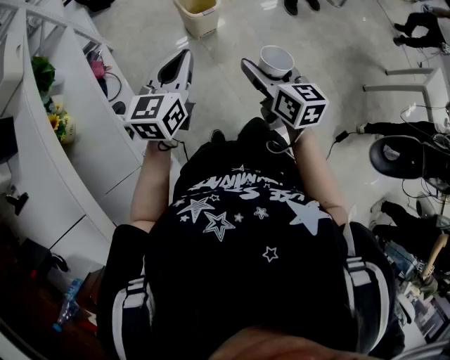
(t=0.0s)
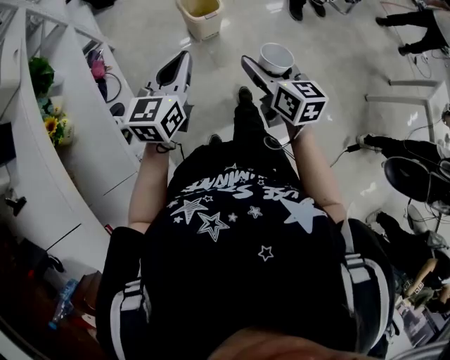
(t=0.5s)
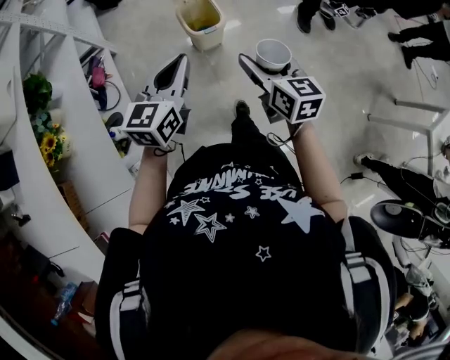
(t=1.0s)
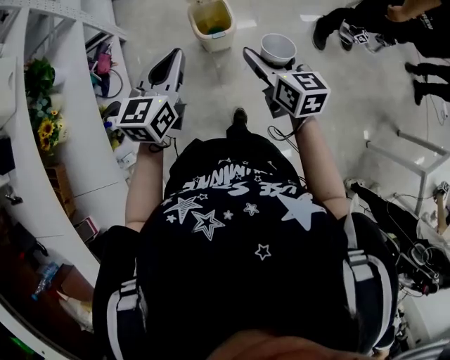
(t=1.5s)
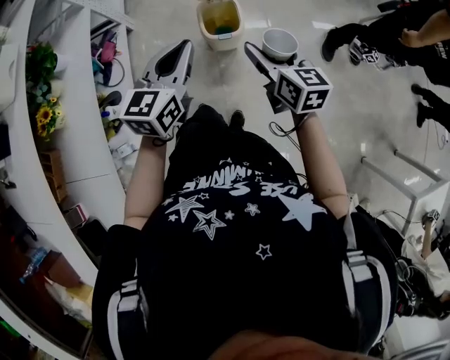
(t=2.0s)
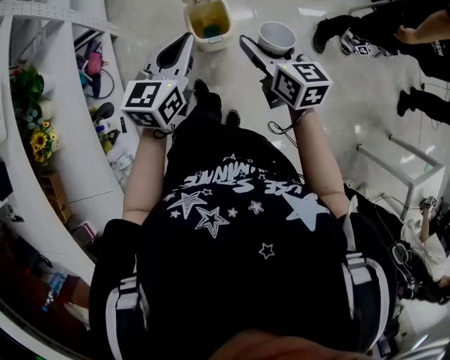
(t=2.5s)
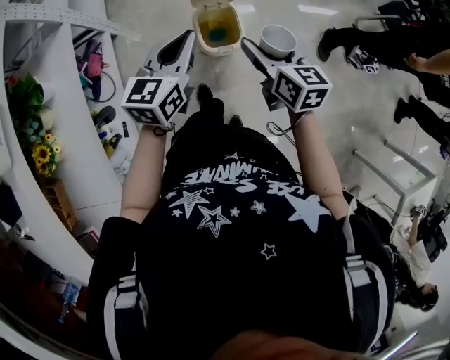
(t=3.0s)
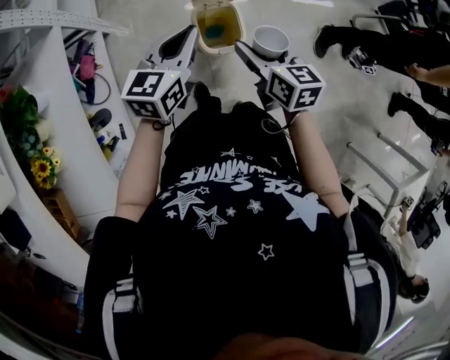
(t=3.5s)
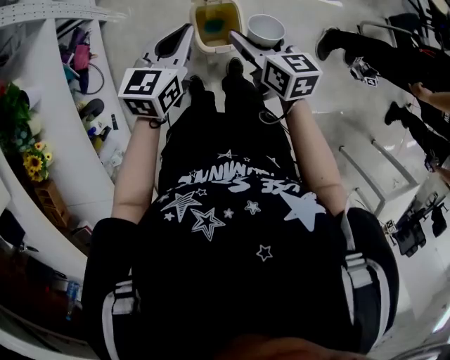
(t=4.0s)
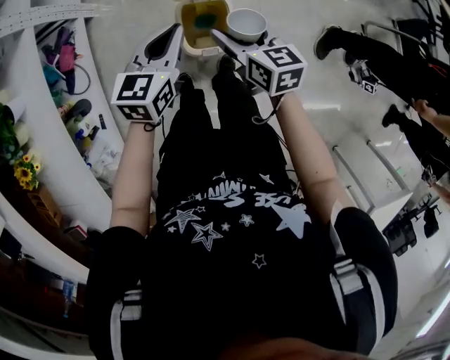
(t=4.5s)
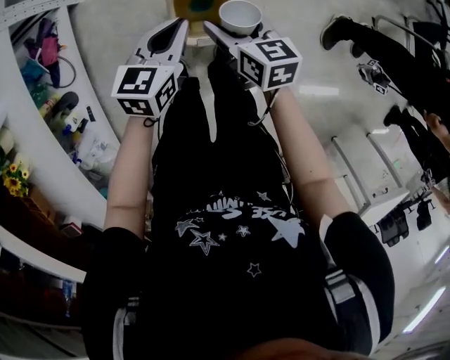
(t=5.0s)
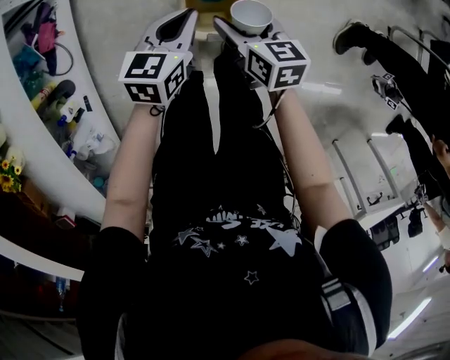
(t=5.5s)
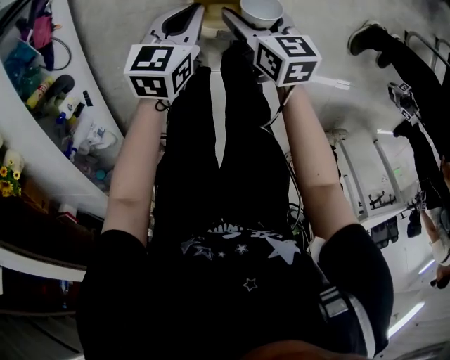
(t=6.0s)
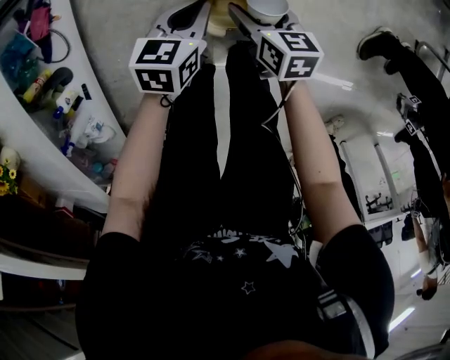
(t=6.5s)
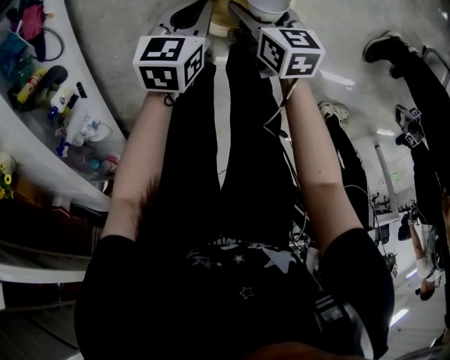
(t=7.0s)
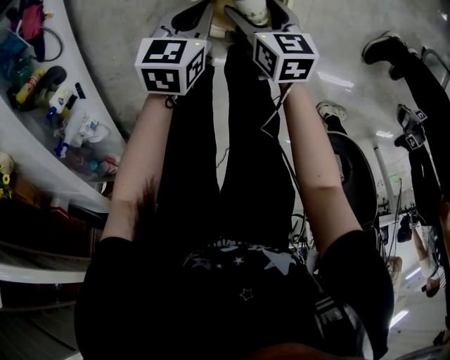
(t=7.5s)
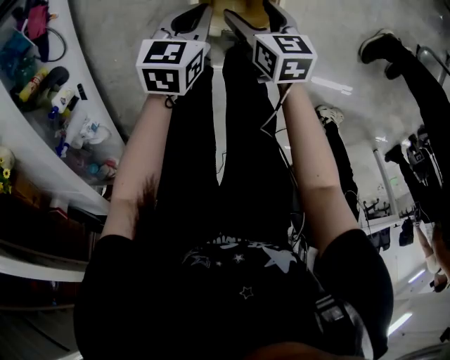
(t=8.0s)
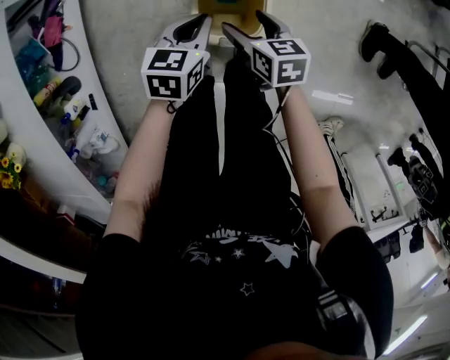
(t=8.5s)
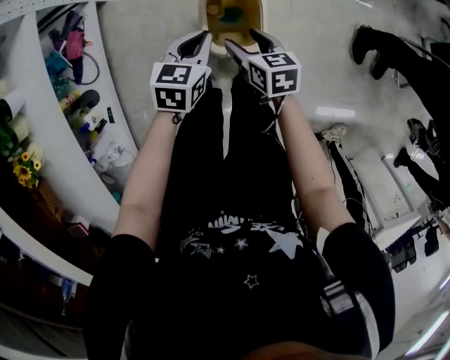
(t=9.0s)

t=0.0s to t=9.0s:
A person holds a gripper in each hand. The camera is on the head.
t=0.0s to t=2.0s: The left gripper goes about 25 cm forward and to the right, while the right gripper goes approximately 30 cm forward, and changes its angle by some 20 degrees.
t=2.0s to t=4.5s: The grippers both shift forward and downward by about 30 cm.
t=4.5s to t=7.0s: The grippers both shift downward by approximately 30 cm. The left gripper swivels some 20 degrees.
t=7.0s to t=9.0s: The grippers both shift upward by roughly 15 cm.

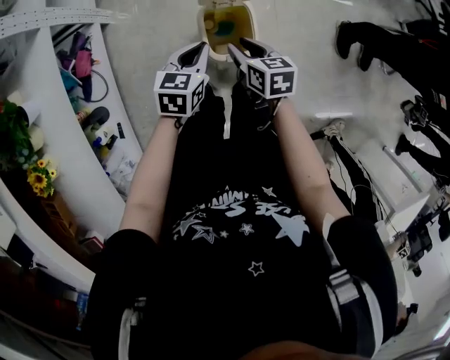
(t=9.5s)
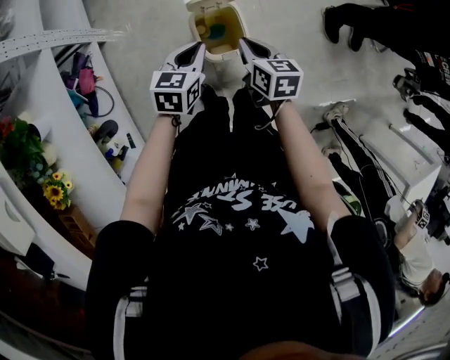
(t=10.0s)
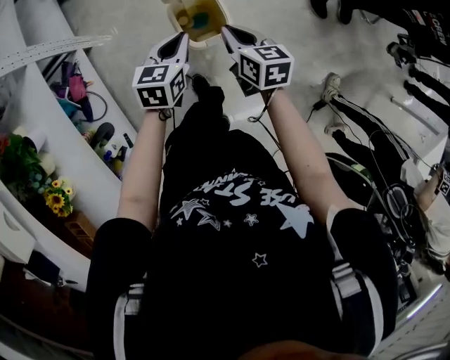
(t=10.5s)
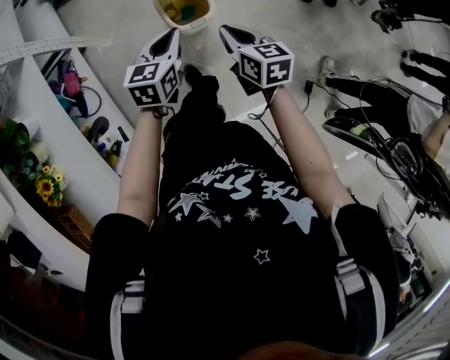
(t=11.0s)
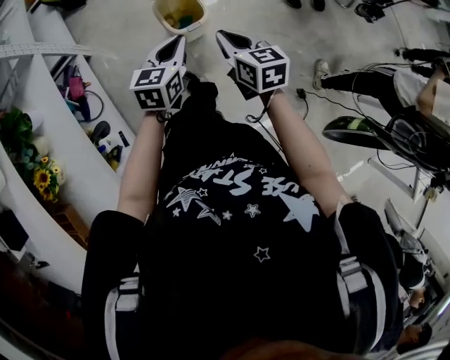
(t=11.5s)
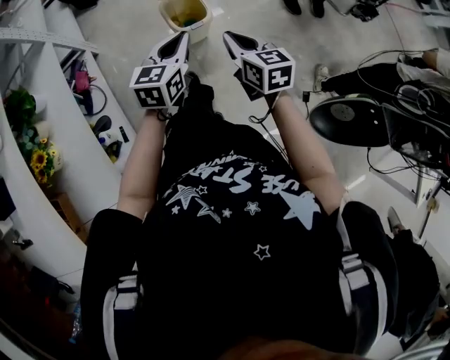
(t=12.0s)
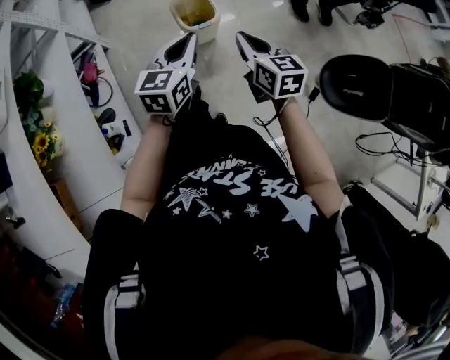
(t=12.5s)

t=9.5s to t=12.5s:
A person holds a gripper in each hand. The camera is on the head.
t=9.5s to t=11.0s: Both grippers move backward and upward, some 15 cm. The right gripper closes.
t=11.0s to t=12.5s: The two grippers go some 20 cm backward and upward.

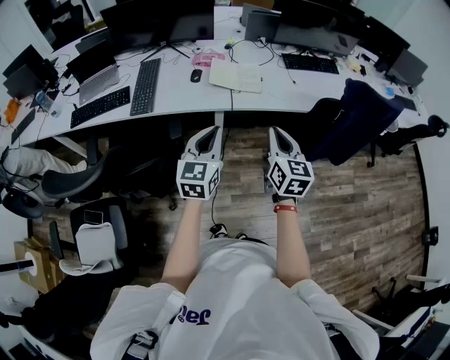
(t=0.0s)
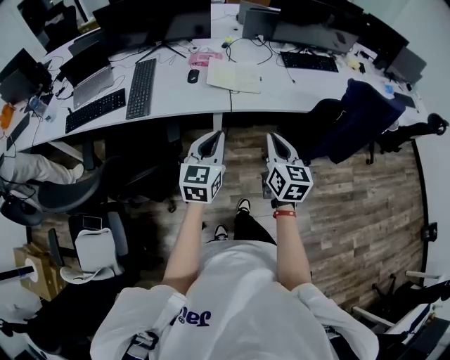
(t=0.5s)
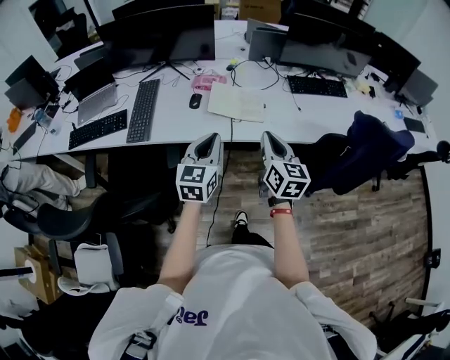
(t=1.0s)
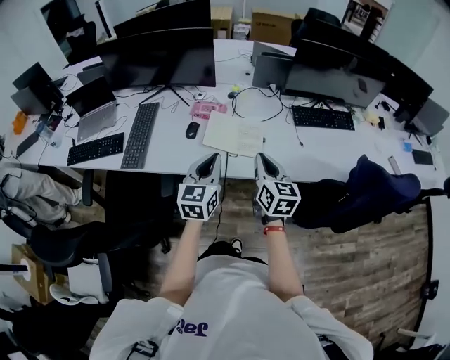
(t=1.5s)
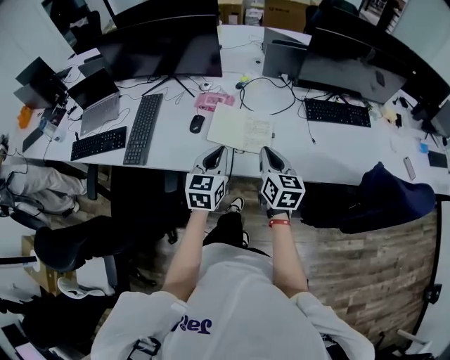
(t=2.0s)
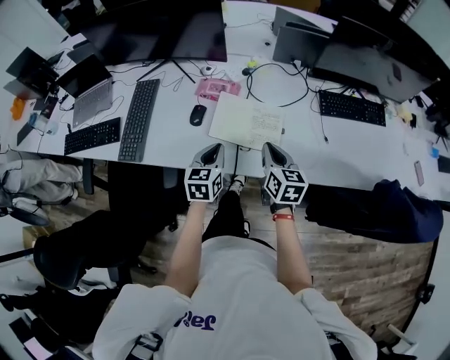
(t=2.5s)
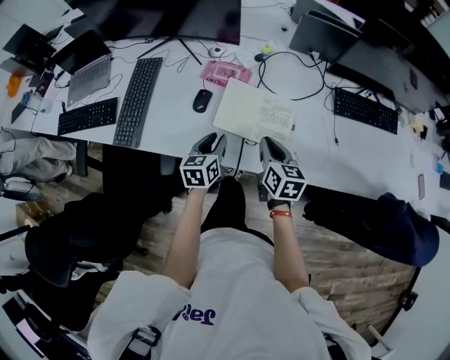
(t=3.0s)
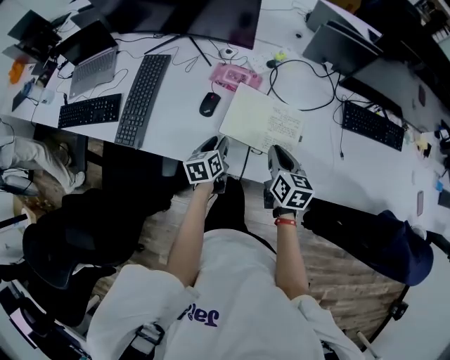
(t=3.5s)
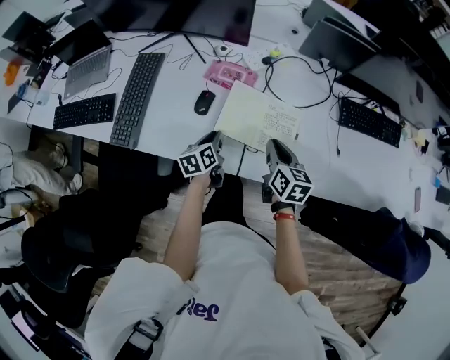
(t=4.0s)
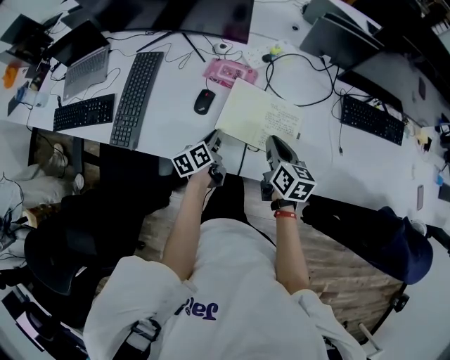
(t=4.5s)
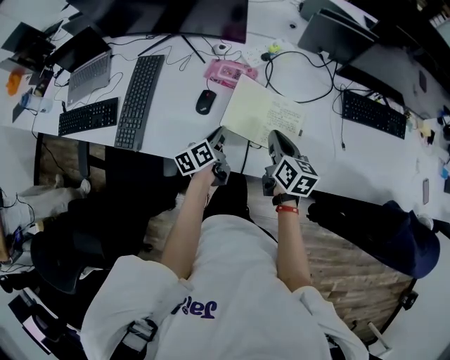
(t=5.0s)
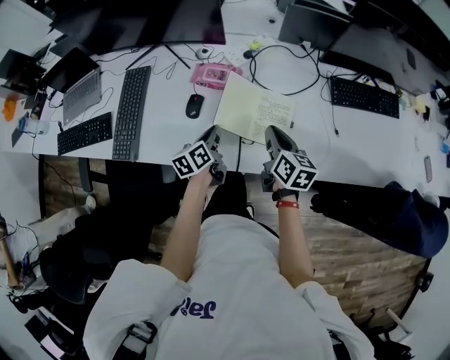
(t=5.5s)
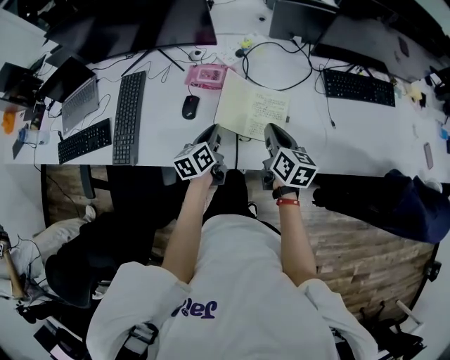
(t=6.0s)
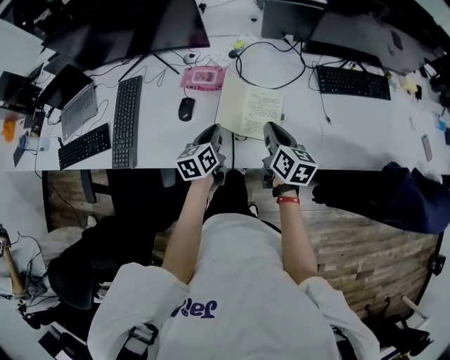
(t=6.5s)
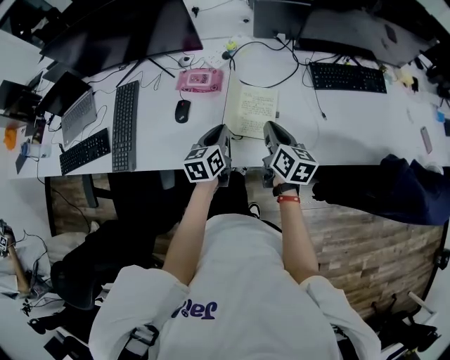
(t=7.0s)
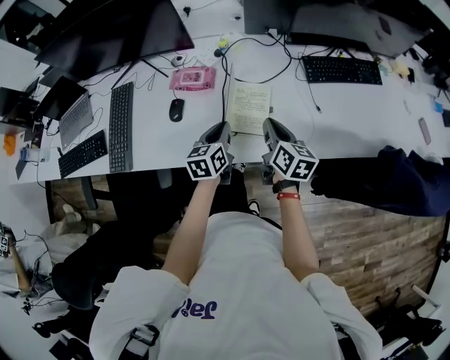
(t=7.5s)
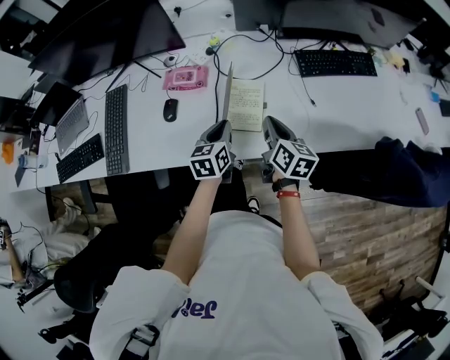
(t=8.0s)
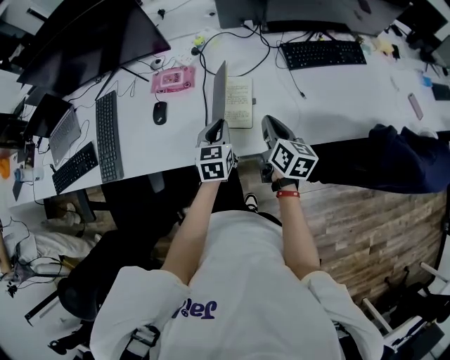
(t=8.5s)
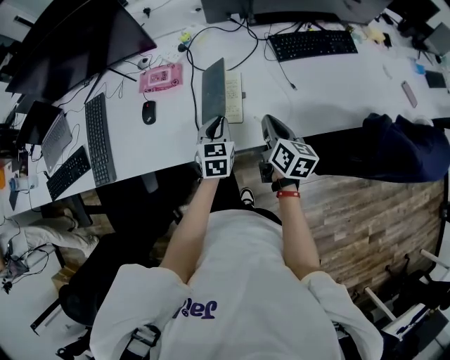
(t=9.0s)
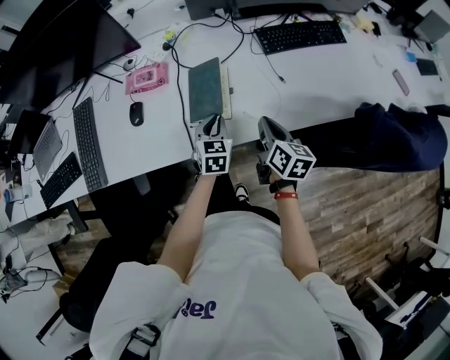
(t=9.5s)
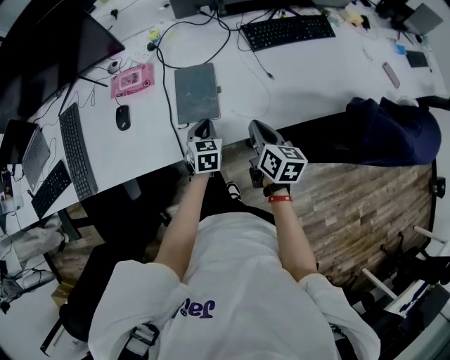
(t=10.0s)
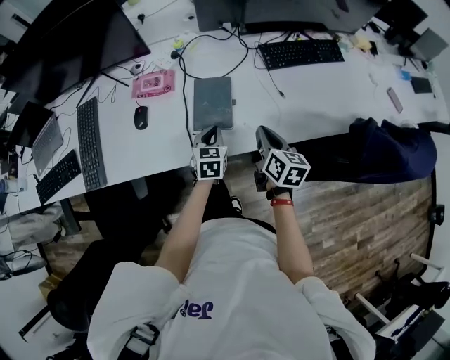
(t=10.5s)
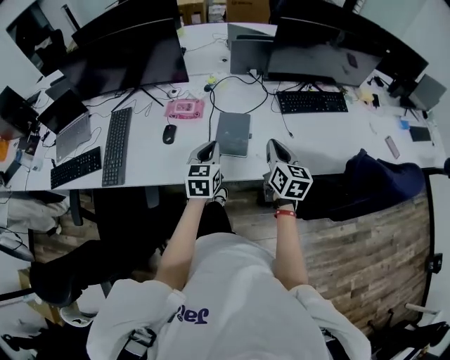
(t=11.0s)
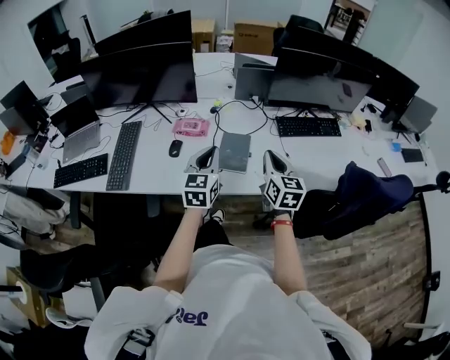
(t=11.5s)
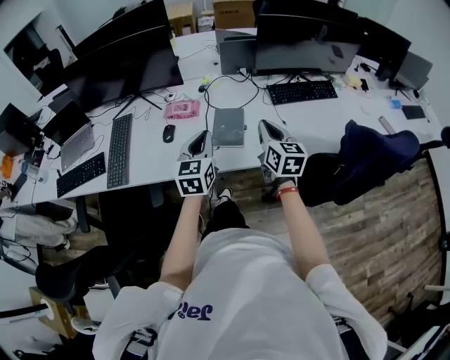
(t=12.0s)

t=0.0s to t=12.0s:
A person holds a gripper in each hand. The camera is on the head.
t=0.0s to t=2.0s: The two grippers go approximately 35 cm forward.
t=2.0s to t=4.0s: The left gripper travels downward and forward by about 30 cm, and turns by some 40 degrees, while the right gripper is displaced forward and downward by roughly 20 cm.
t=4.0s to t=6.0s: The left gripper shifts about 10 cm upward and to the right.
t=6.0s to t=8.0s: Both grippers travel together to the right, approximately 10 cm. The left gripper changes its angle by some 20 degrees.
t=8.0s to t=10.0s: The right gripper moves to the right and backward, some 10 cm; the left gripper heads downward and to the right, covering approximately 15 cm, and swivels roughly 30 degrees.
t=10.0s to t=12.0s: The right gripper travels upward by roughly 20 cm, and rotates approximately 30 degrees; the left gripper heads upward and backward, covering some 30 cm, and changes its angle by roughly 30 degrees.

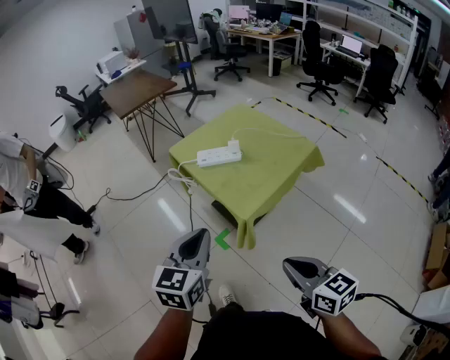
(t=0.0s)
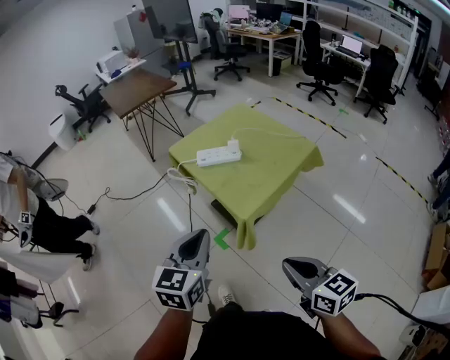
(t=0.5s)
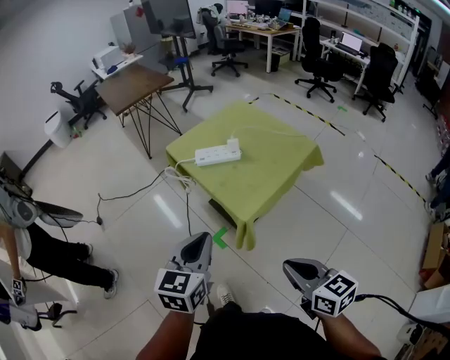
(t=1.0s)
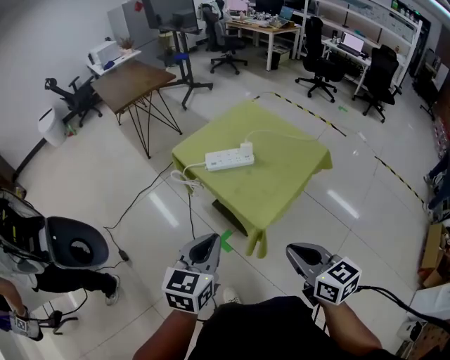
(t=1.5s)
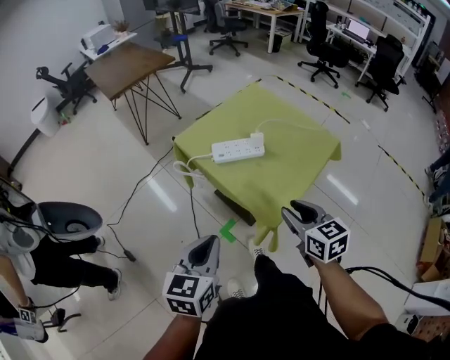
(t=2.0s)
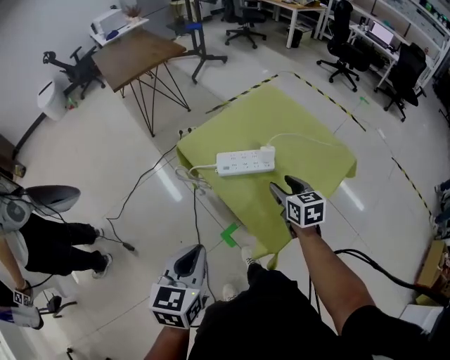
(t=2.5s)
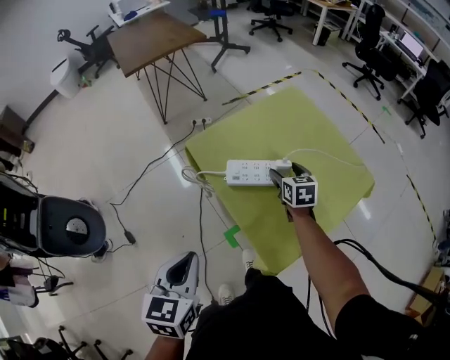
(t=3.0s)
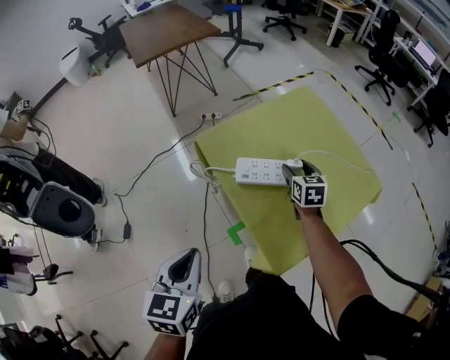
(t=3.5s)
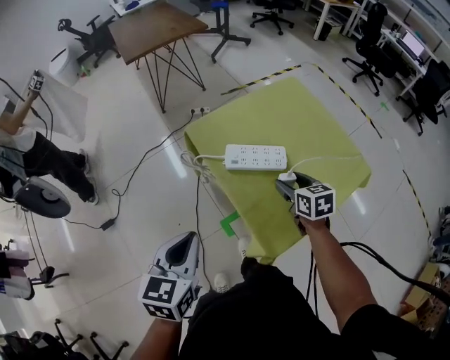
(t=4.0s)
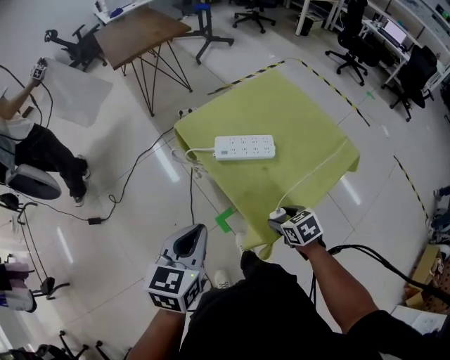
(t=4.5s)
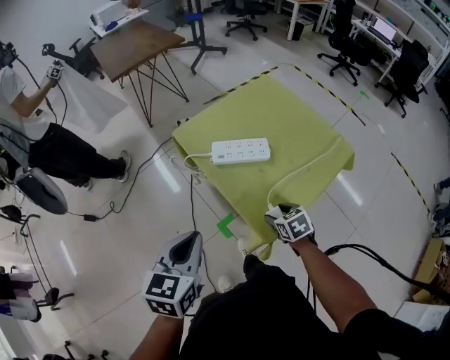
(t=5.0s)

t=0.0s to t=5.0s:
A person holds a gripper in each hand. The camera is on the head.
t=0.0s to t=2.5s: The left gripper travels forward, to the left and downward by roughly 20 cm. Meanwhile the right gripper is displaced forward by roughly 40 cm, and opens up.
t=2.5s to t=5.0s: The right gripper travels downward and backward by some 15 cm, and rotates about 30 degrees.
